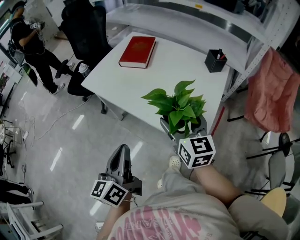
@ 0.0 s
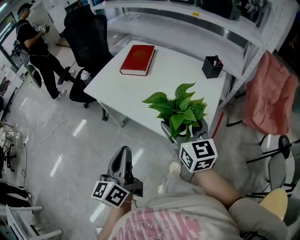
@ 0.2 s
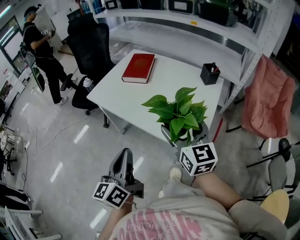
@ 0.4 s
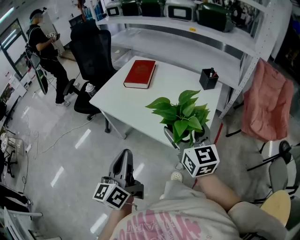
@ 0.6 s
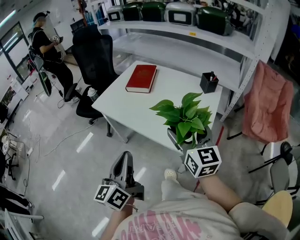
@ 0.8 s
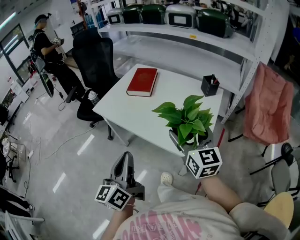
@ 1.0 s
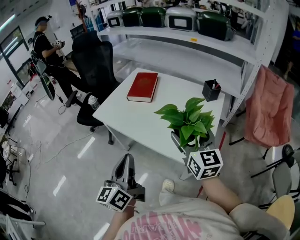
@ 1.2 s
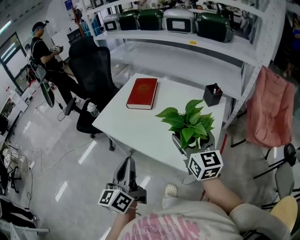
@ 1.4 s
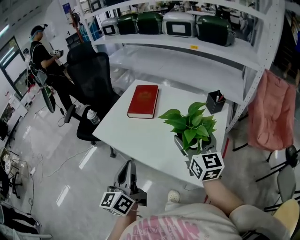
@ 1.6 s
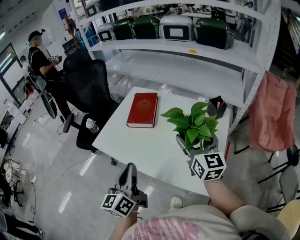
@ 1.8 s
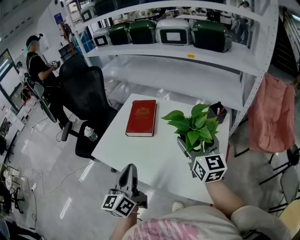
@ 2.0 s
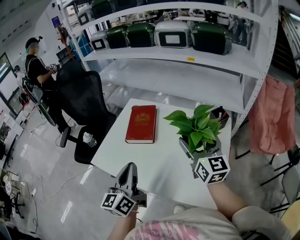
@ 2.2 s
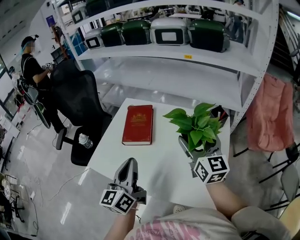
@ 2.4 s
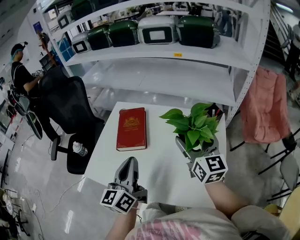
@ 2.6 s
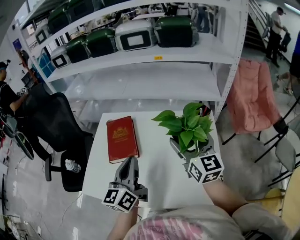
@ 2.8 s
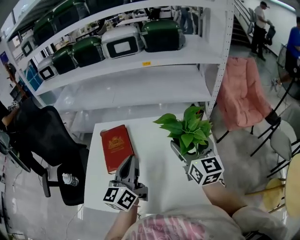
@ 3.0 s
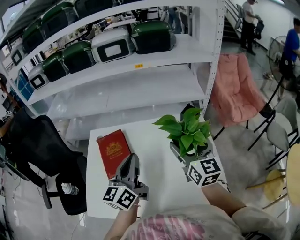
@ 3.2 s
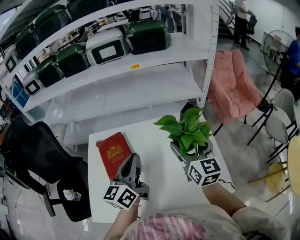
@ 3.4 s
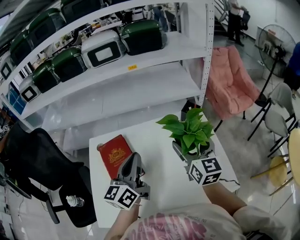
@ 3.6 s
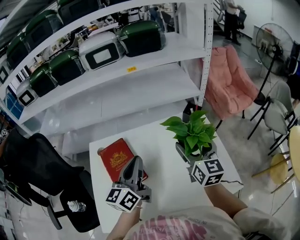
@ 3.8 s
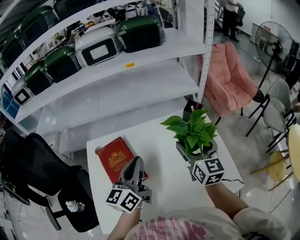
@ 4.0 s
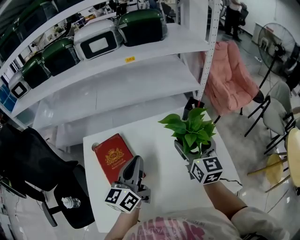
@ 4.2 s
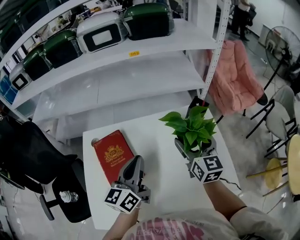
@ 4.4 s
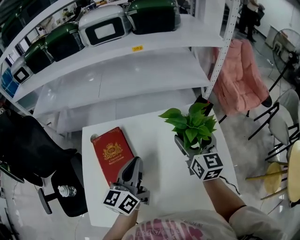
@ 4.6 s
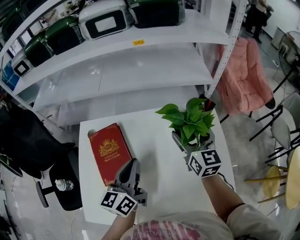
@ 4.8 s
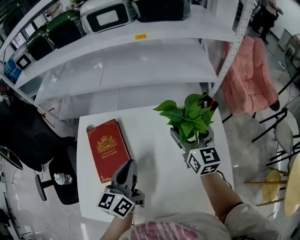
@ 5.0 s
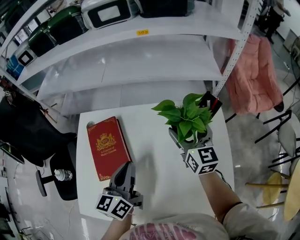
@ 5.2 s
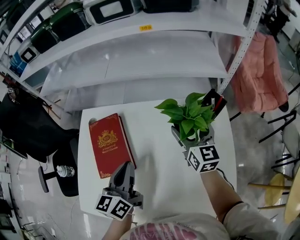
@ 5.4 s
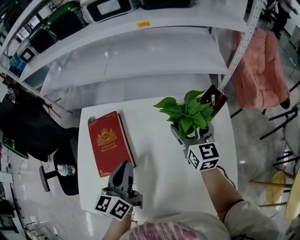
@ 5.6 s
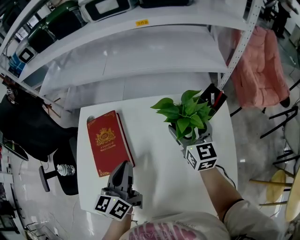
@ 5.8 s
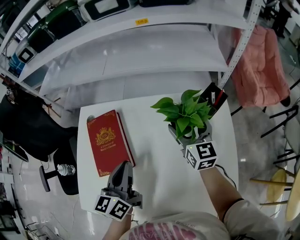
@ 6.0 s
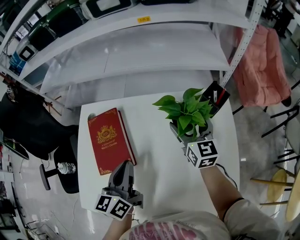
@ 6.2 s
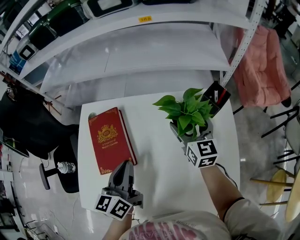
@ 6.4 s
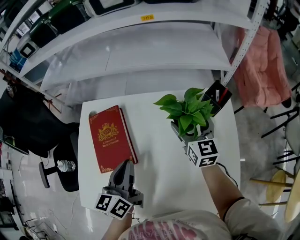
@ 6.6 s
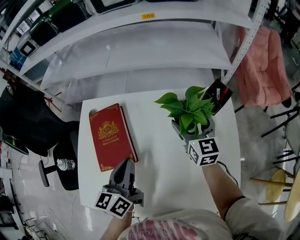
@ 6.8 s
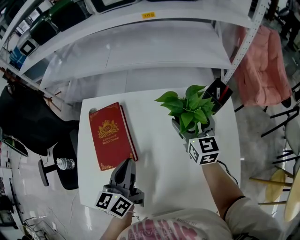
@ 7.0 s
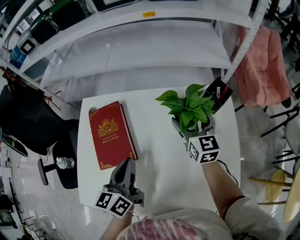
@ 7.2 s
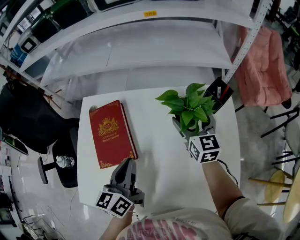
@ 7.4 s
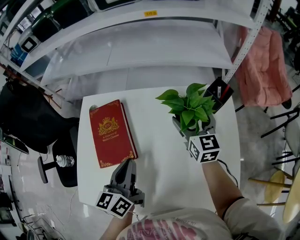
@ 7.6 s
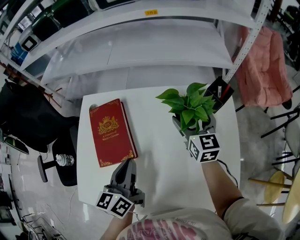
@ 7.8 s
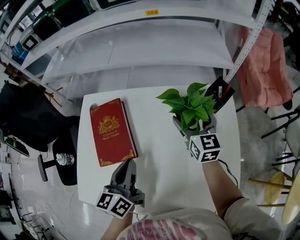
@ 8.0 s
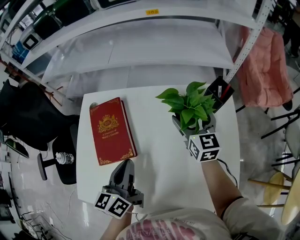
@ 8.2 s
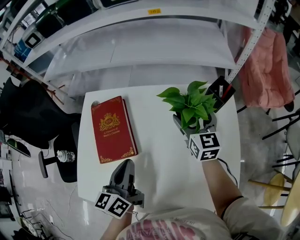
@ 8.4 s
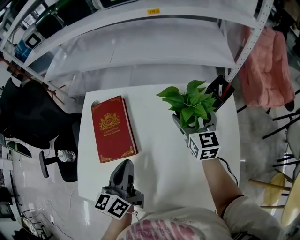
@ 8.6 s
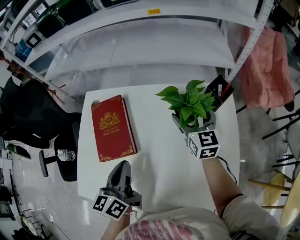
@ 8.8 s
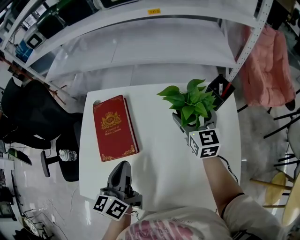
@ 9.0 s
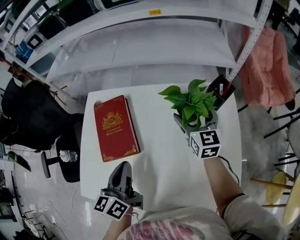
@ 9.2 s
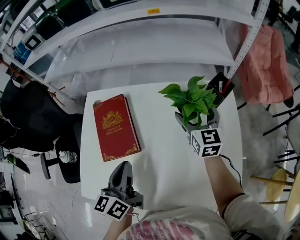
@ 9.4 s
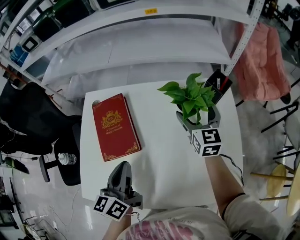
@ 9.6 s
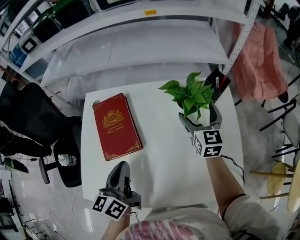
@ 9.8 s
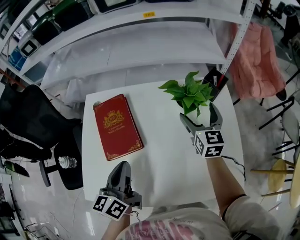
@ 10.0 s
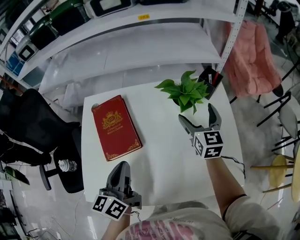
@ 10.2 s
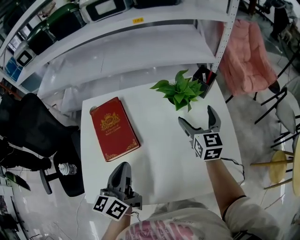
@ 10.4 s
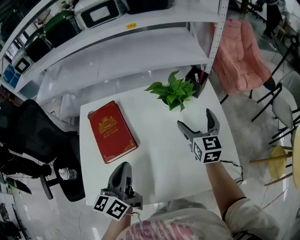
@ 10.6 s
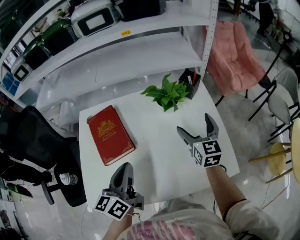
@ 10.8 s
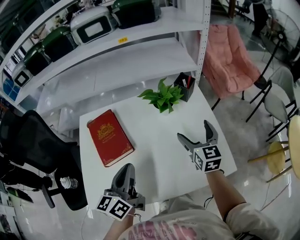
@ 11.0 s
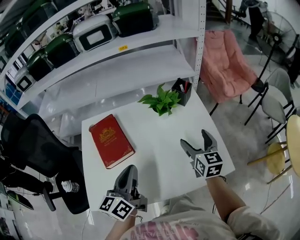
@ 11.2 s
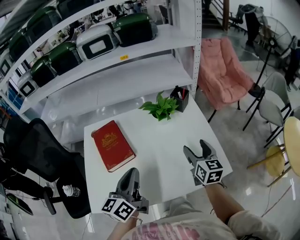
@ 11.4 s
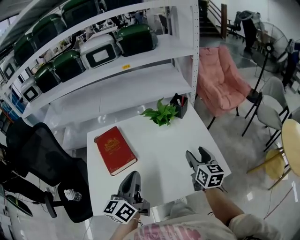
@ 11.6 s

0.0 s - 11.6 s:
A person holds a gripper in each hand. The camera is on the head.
0.0 s - 1.4 s: The left gripper shifts some 10 cm forward and upward, while the right gripper is displaced upward by some 10 cm.
1.4 s - 2.8 s: The grippers both shift forward by roughly 30 cm. The left gripper turns by approximately 20 degrees.
2.8 s - 4.4 s: The right gripper moves some 10 cm, and rotates roughly 20 degrees. The left gripper shifts by some 15 cm, and turns by some 20 degrees.
4.4 s - 5.8 s: The left gripper moves downward, about 5 cm, and turns by about 20 degrees; the right gripper travels downward and forward by roughly 15 cm.
5.8 s - 8.8 s: The grippers make only small movements.
8.8 s - 10.2 s: The left gripper moves about 5 cm. Meanwhile the right gripper heads backward, covering some 5 cm.
10.2 s - 11.6 s: The right gripper travels backward by approximately 20 cm, and closes its fingers; the left gripper shifts roughly 15 cm upward, backward and to the right.

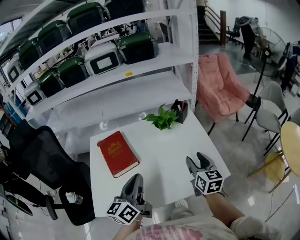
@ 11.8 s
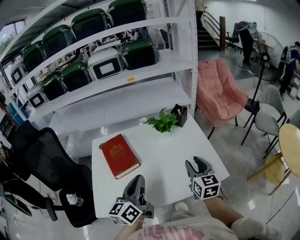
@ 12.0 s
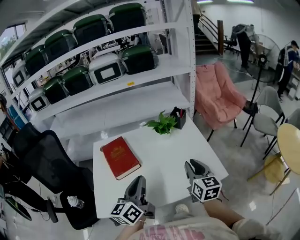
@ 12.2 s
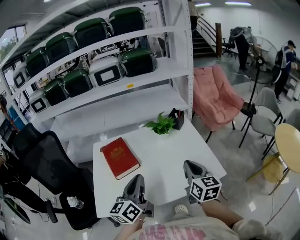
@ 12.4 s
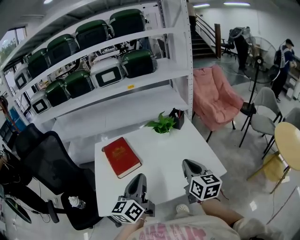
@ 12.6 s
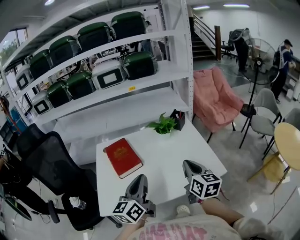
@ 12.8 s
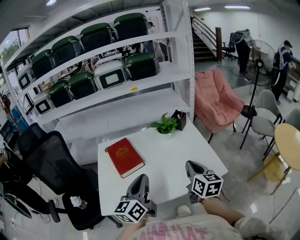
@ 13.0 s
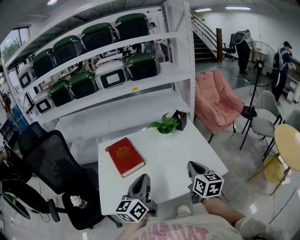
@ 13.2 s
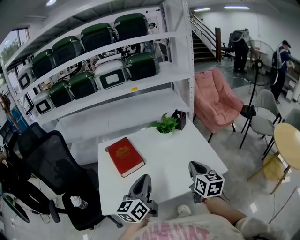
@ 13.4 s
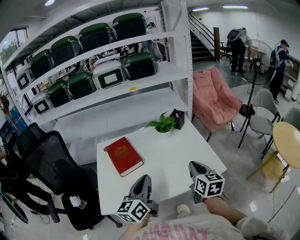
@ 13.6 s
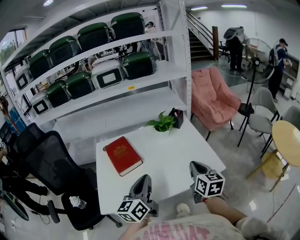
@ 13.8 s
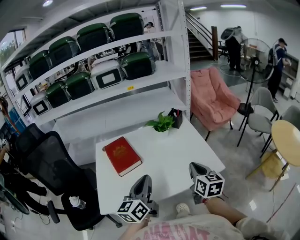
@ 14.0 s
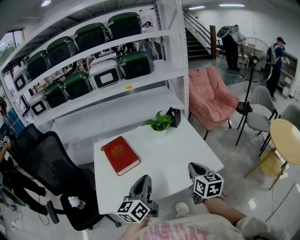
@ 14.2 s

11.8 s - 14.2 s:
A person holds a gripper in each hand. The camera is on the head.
11.8 s - 13.0 s: The left gripper shifts roughly 10 cm backward. Meanwhile the right gripper shifts approximately 10 cm backward and upward, and closes up.
13.0 s - 14.2 s: The grippers stay close to where they were, moving slightly.

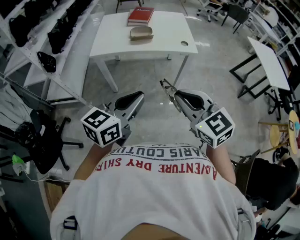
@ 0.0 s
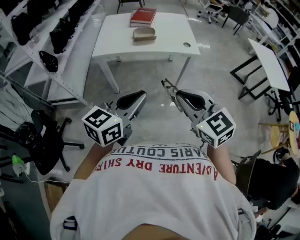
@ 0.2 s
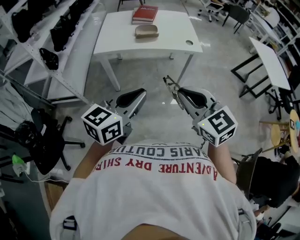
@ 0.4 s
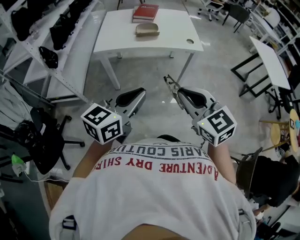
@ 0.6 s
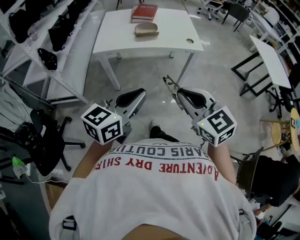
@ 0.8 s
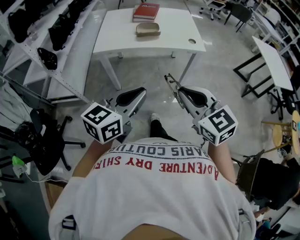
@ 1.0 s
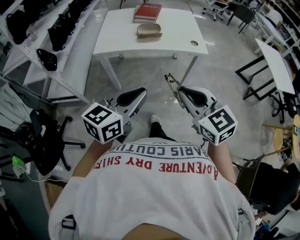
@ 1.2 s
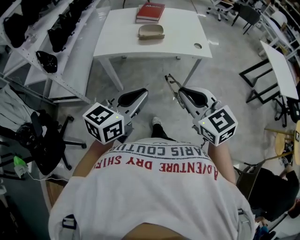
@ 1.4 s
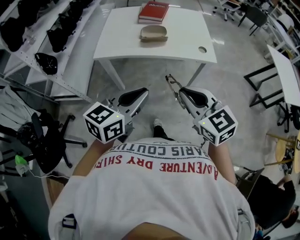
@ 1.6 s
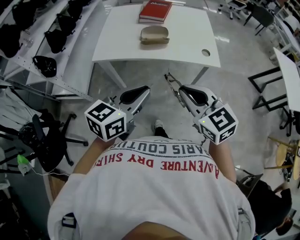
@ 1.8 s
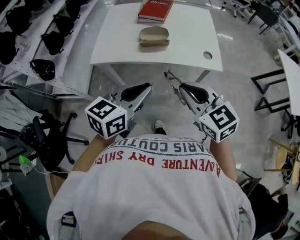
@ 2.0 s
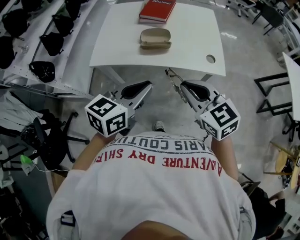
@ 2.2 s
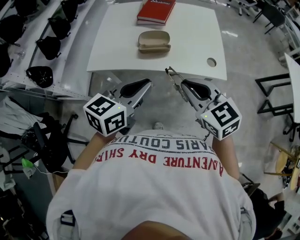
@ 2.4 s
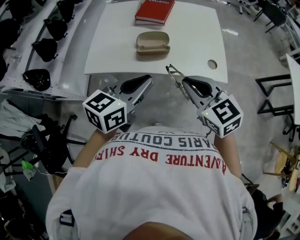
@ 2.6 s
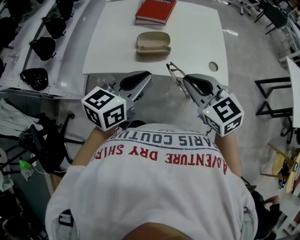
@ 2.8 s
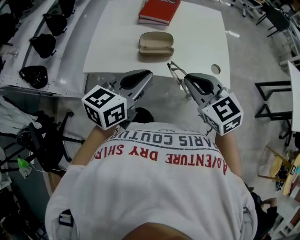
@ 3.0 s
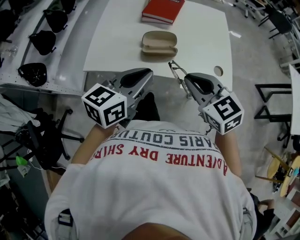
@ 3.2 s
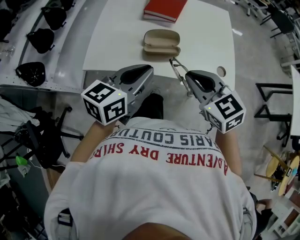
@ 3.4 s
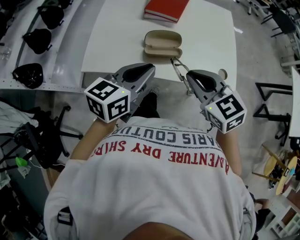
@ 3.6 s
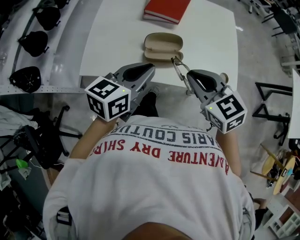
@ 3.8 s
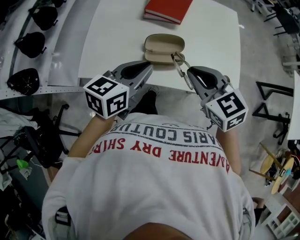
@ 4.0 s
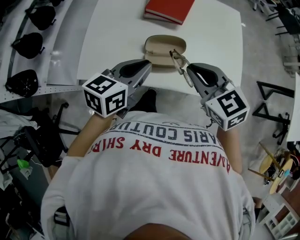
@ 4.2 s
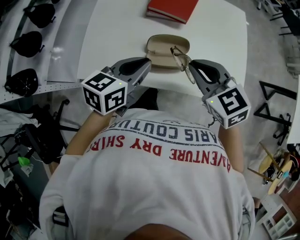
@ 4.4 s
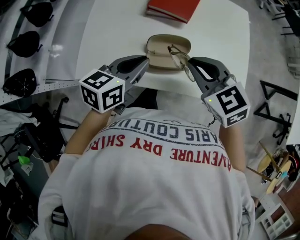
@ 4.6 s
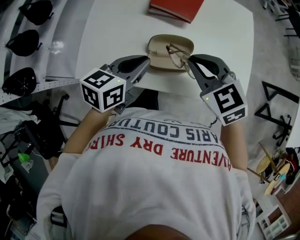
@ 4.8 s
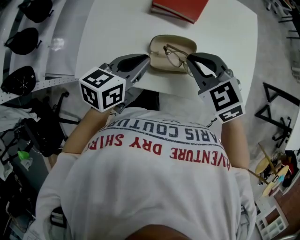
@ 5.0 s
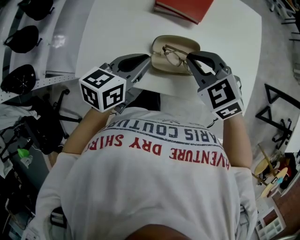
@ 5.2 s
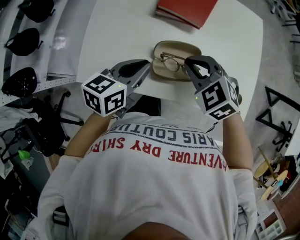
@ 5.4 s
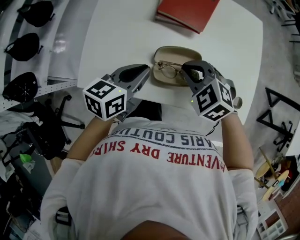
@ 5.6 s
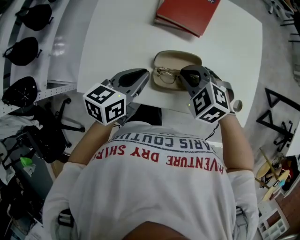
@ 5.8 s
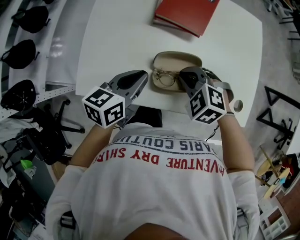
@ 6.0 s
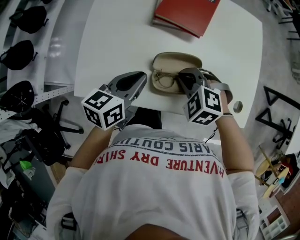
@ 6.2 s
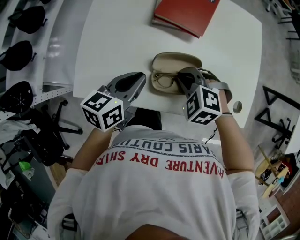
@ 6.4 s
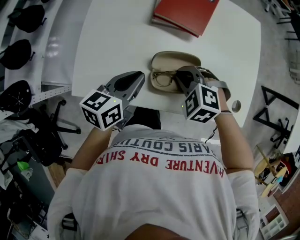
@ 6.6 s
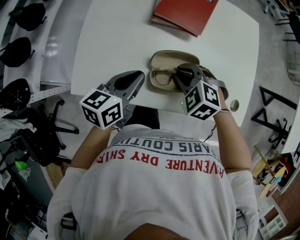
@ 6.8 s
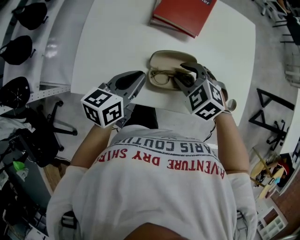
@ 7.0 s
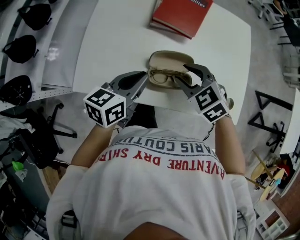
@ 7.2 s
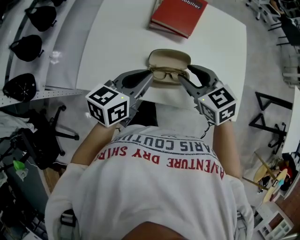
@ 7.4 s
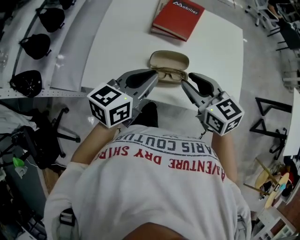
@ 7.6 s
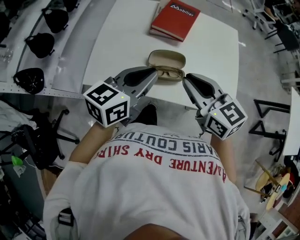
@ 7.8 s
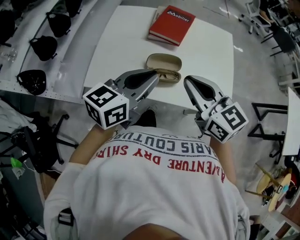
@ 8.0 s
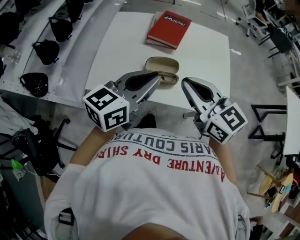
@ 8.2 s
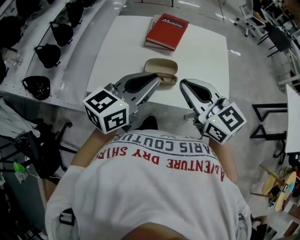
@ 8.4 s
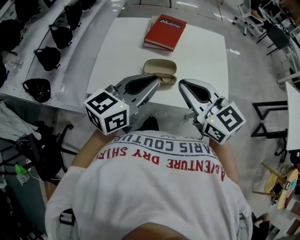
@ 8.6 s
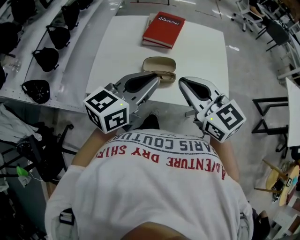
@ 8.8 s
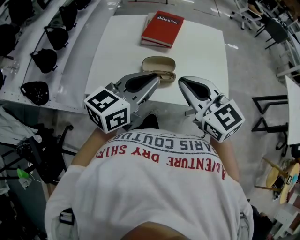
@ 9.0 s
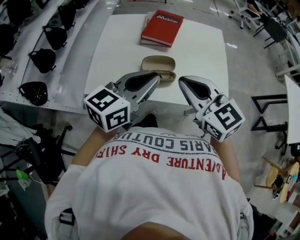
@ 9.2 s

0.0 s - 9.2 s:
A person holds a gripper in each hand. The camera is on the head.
0.0 s - 1.6 s: Both grippers move forward, some 15 cm.
1.6 s - 3.0 s: Both grippers travel together forward, about 25 cm.
3.0 s - 4.6 s: The right gripper heads forward, covering some 15 cm. Meanwhile the left gripper is displaced forward, downward and to the left by about 20 cm.
4.6 s - 6.2 s: The right gripper goes approximately 15 cm downward, and rotates approximately 40 degrees. Meanwhile the left gripper travels downward by about 5 cm.
6.2 s - 7.6 s: The right gripper moves upward, about 15 cm, points its fingers some 40 degrees further upward, and opens its fingers. The left gripper goes some 15 cm upward and to the right.
7.6 s - 9.2 s: The grippers both shift upward and backward by about 10 cm. The right gripper closes up.
